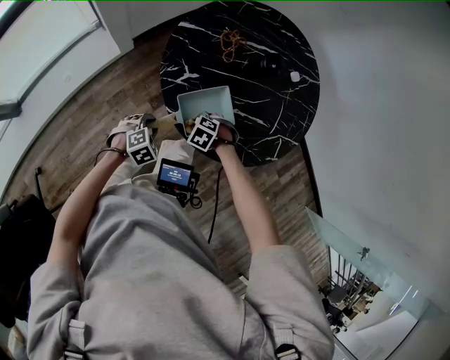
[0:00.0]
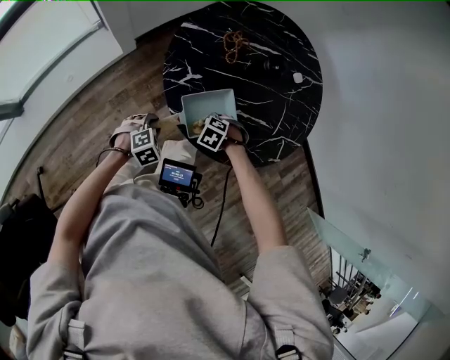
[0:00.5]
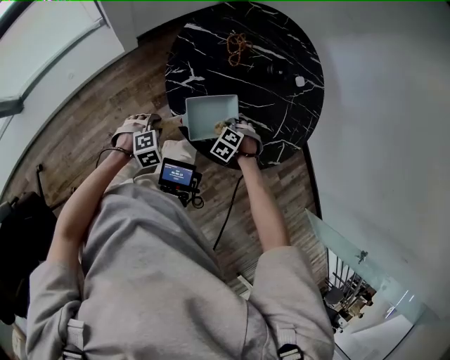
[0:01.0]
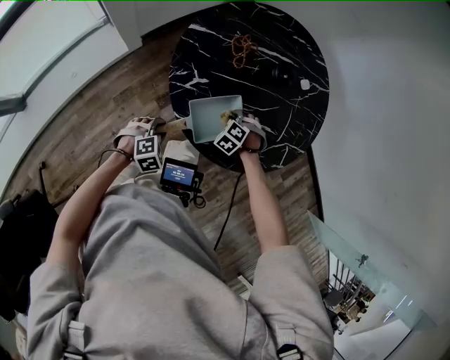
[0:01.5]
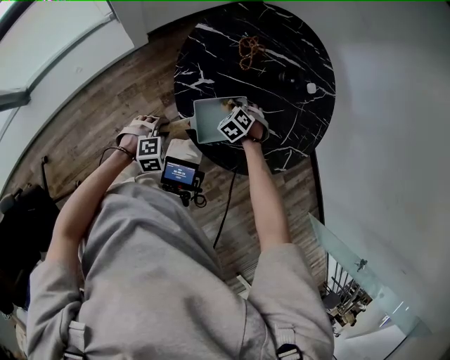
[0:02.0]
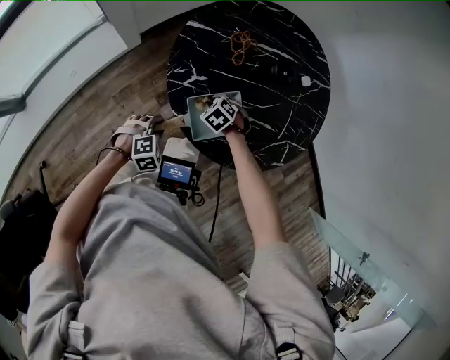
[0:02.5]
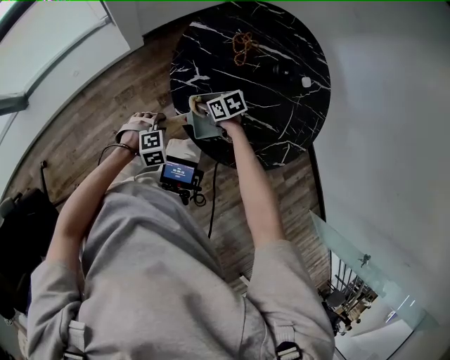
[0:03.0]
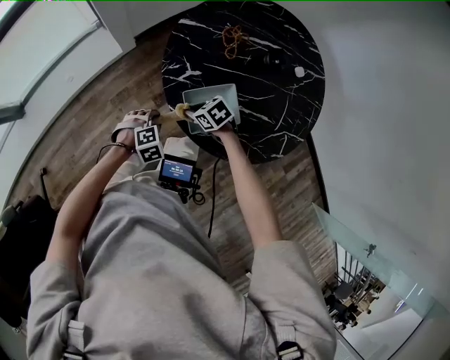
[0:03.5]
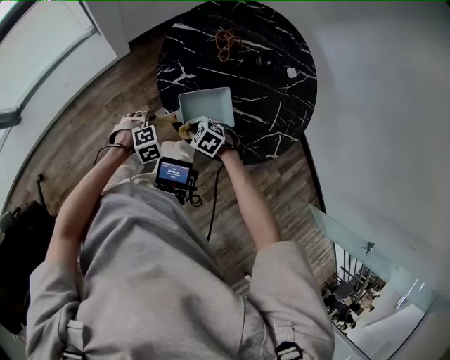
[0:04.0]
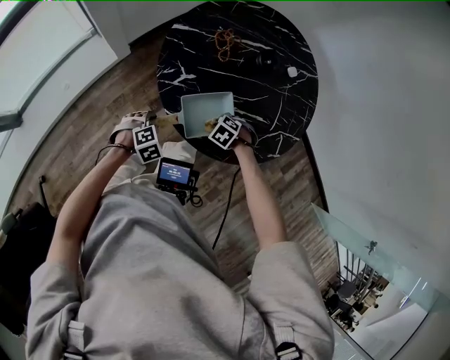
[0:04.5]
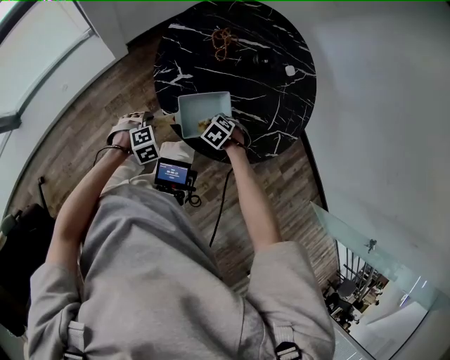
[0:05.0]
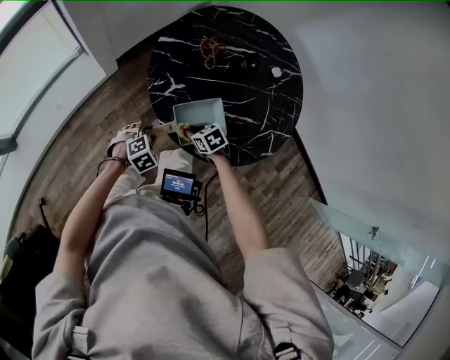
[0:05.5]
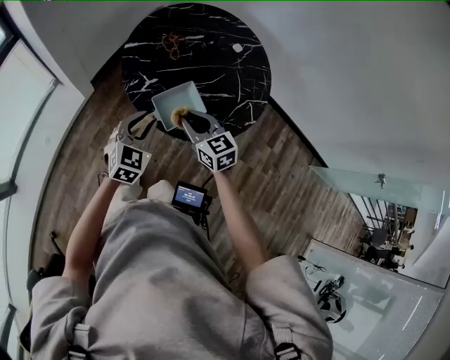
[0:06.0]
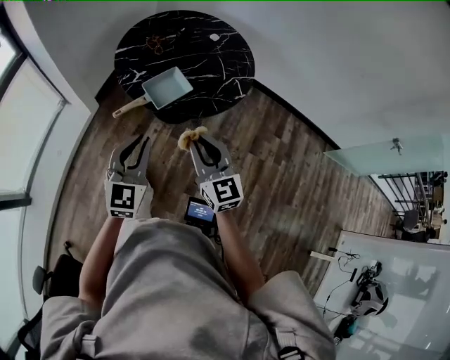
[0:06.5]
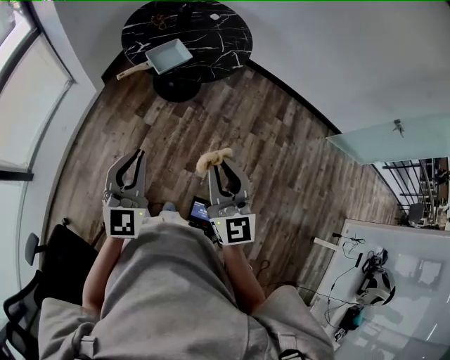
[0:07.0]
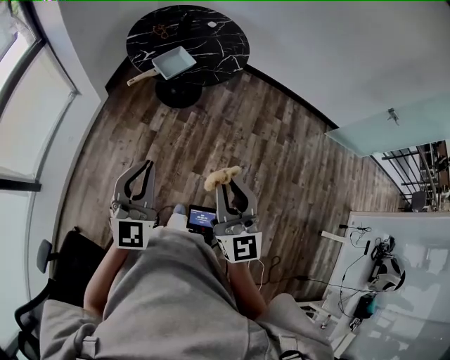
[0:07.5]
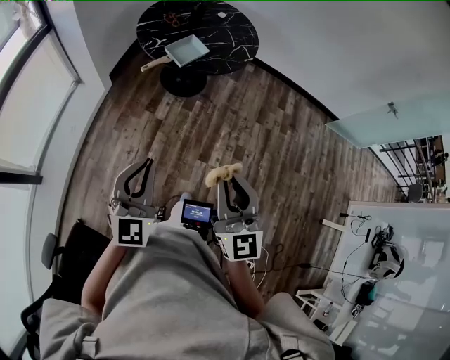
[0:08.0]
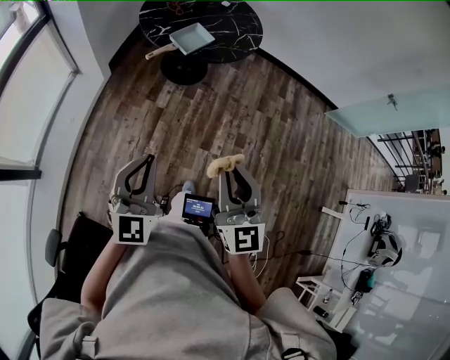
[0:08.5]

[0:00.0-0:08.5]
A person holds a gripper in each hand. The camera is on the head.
0:00.0 to 0:02.0: The right gripper moves about 15 cm, and changes its angle by roughly 20 degrees.
0:02.0 to 0:04.0: The right gripper ends up some 20 cm from where it was, and rotates roughly 30 degrees.
0:04.0 to 0:06.5: Both grippers move upward, about 35 cm. The right gripper points its fingers roughly 60 degrees further upward; the left gripper points its fingers roughly 60 degrees further upward, and closes its fingers.
0:06.5 to 0:08.5: The two grippers go approximately 35 cm backward. The right gripper swivels roughly 20 degrees.

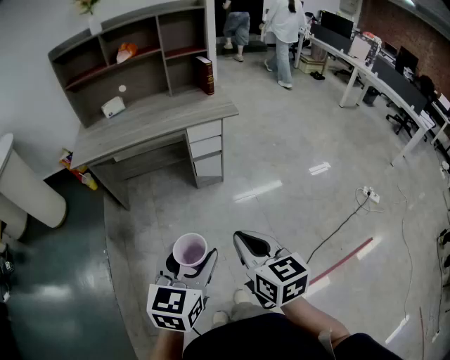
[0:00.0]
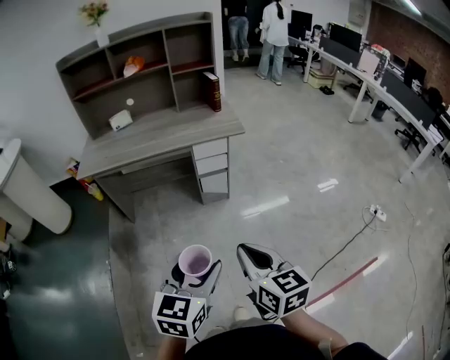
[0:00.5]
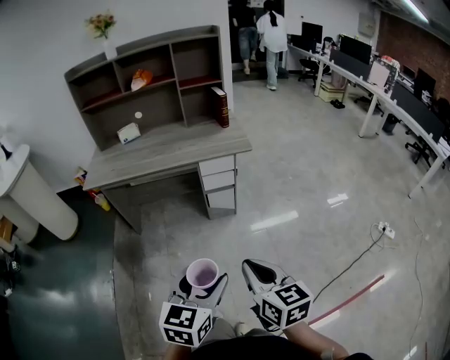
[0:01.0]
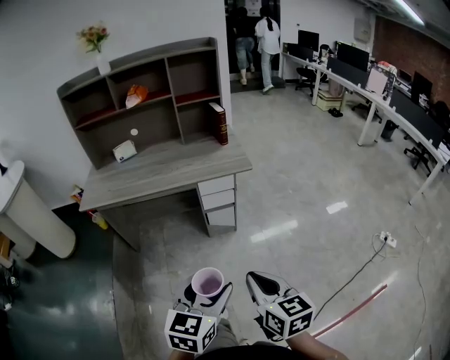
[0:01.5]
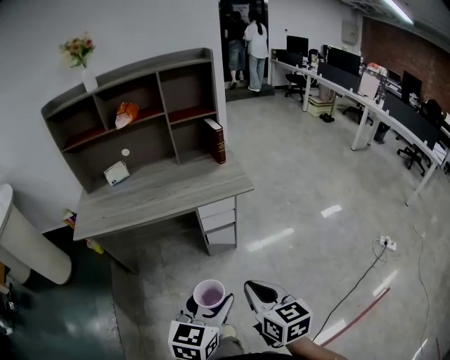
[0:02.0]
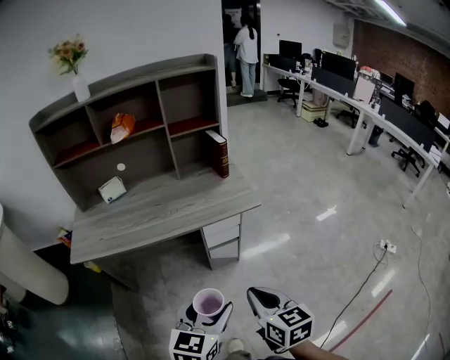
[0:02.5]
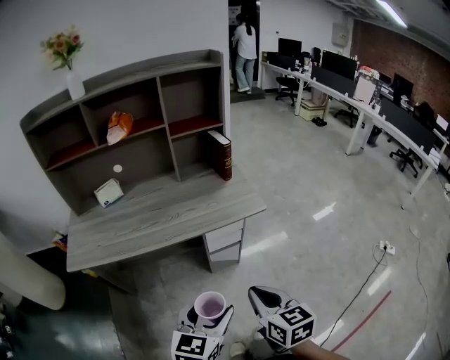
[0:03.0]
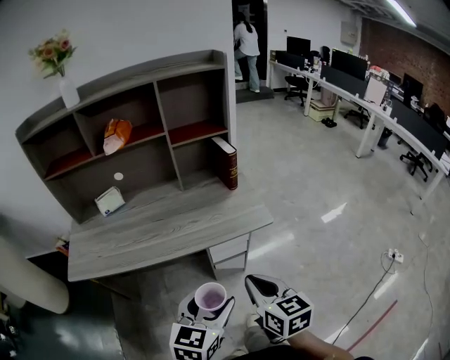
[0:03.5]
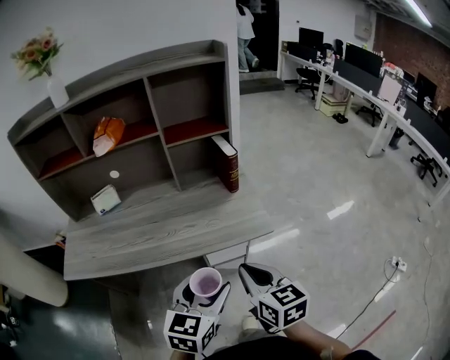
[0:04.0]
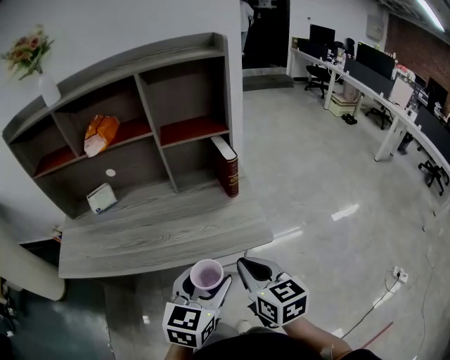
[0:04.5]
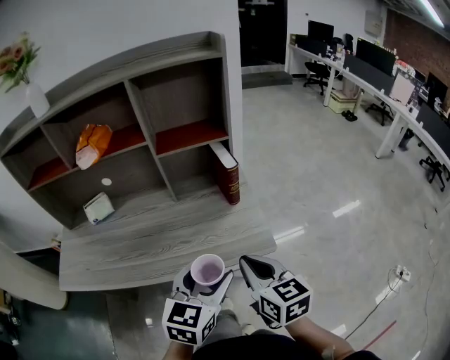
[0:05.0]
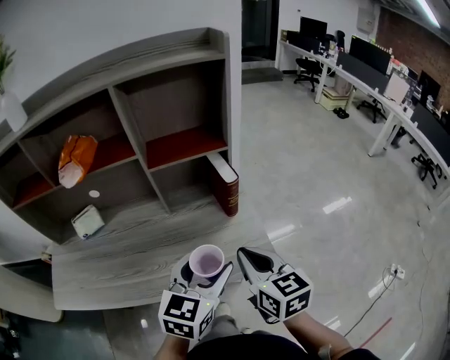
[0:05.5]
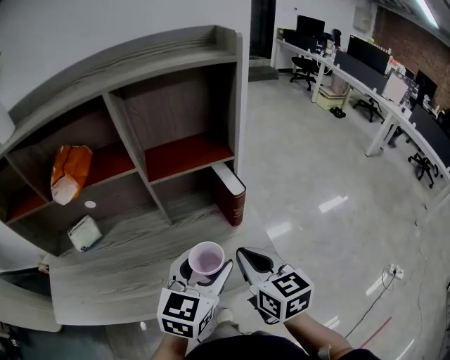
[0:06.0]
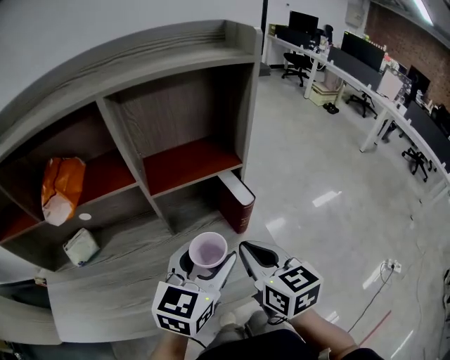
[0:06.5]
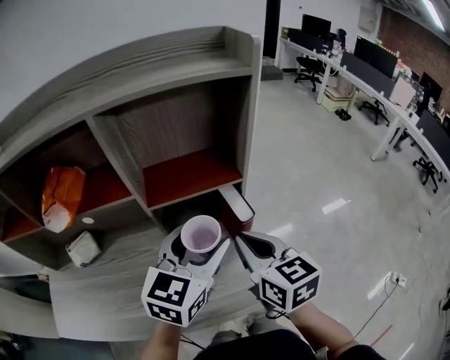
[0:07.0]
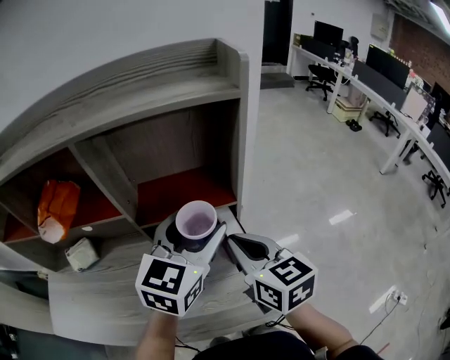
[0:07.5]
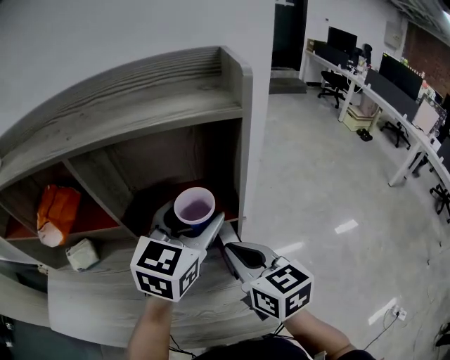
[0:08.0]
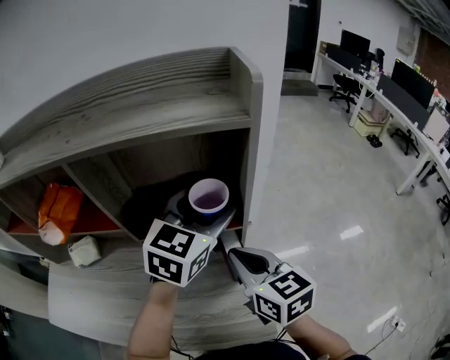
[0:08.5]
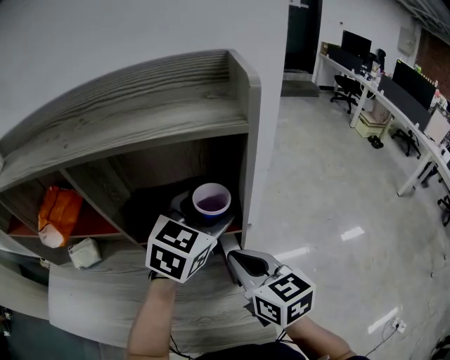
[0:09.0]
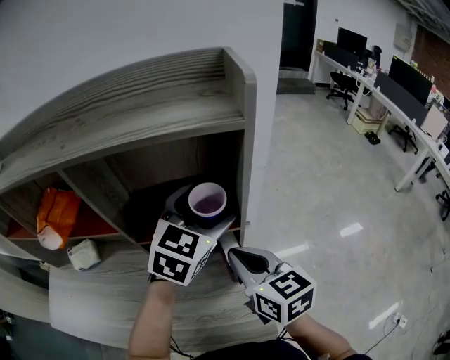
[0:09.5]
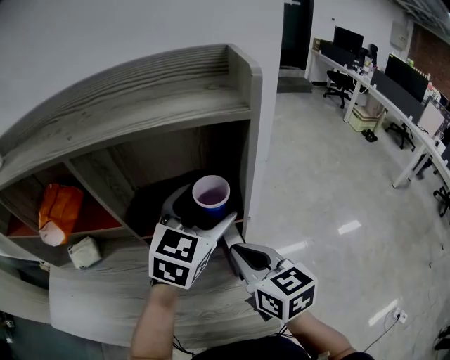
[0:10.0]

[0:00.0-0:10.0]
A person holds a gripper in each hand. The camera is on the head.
0:00.0 to 0:02.0: Both grippers move forward, about 20 cm.
0:02.0 to 0:04.0: The two grippers go some 30 cm forward.
0:04.0 to 0:06.0: Both grippers travel together forward, roughly 25 cm.
0:06.0 to 0:08.0: The left gripper goes some 30 cm forward and upward; the right gripper travels forward by roughly 20 cm.
0:08.0 to 0:10.0: The grippers move only a little.

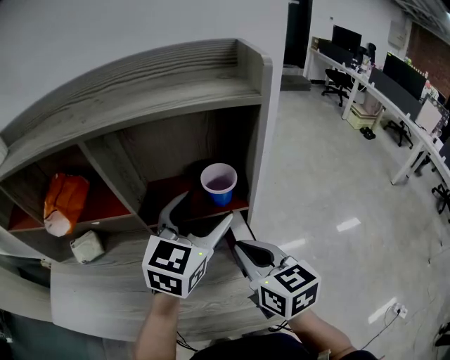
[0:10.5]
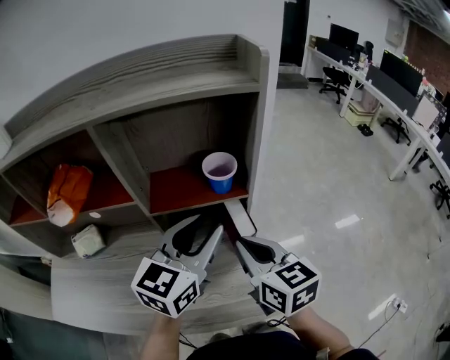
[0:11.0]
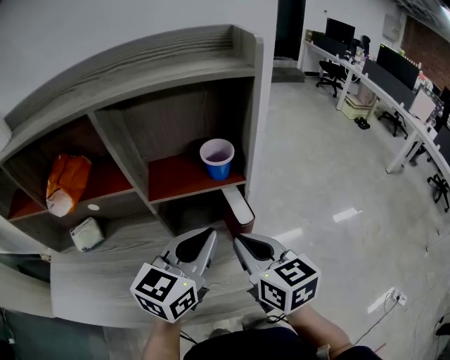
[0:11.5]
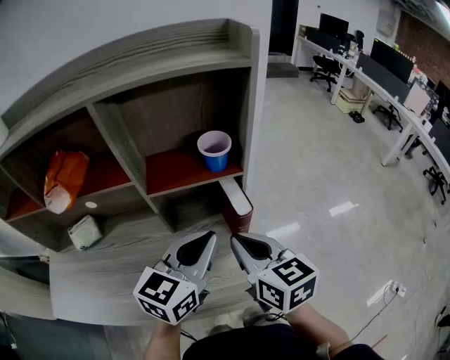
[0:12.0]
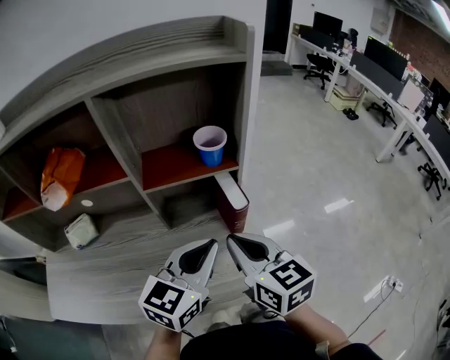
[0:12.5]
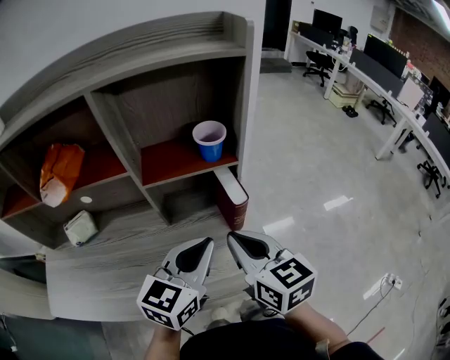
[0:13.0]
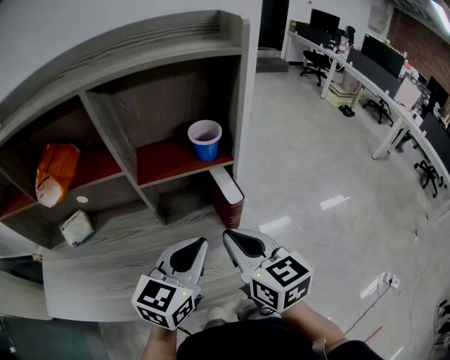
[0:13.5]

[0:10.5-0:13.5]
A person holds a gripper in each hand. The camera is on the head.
0:10.5 to 0:12.0: The right gripper goes some 5 cm backward. The left gripper travels backward and downward by roughly 15 cm, and closes up.
0:12.0 to 0:13.5: There are only small adjustments of the grippers.

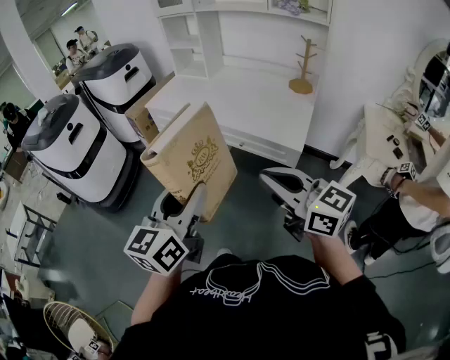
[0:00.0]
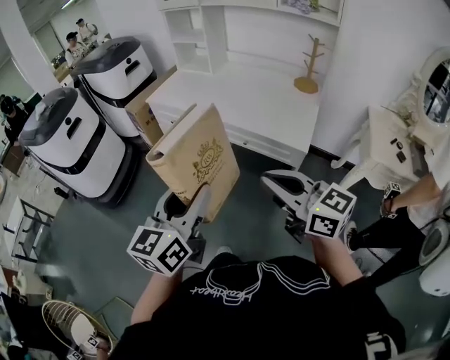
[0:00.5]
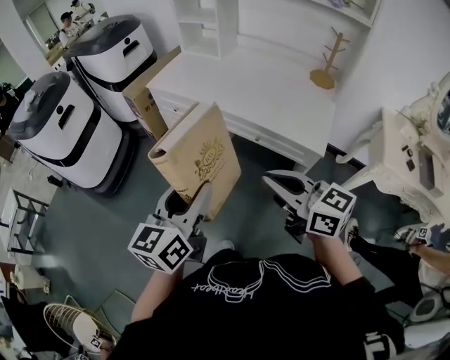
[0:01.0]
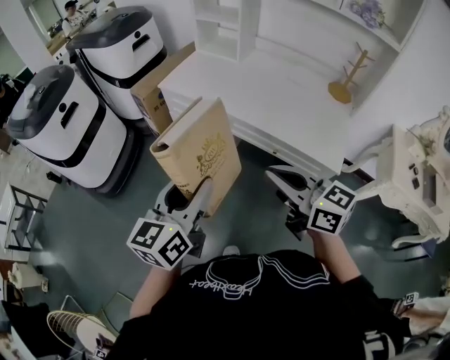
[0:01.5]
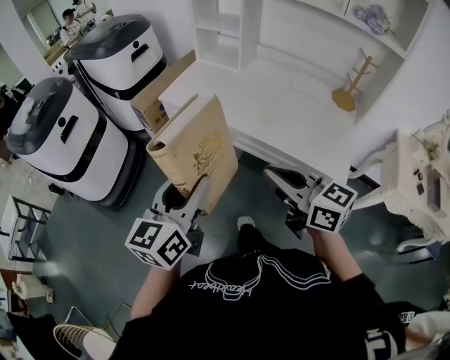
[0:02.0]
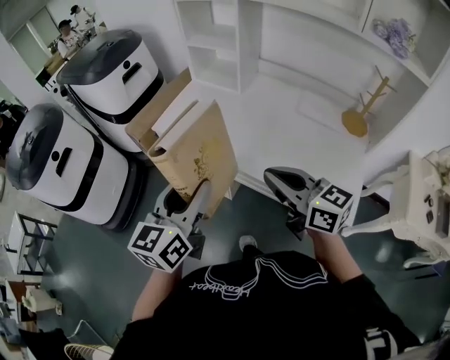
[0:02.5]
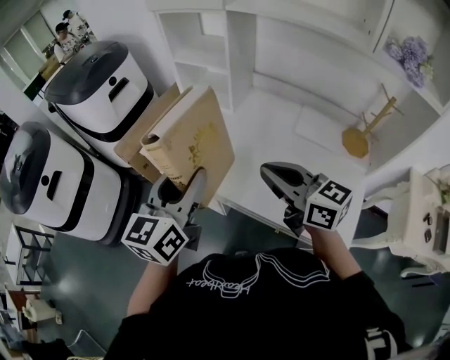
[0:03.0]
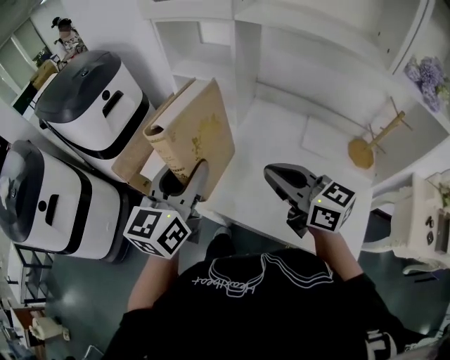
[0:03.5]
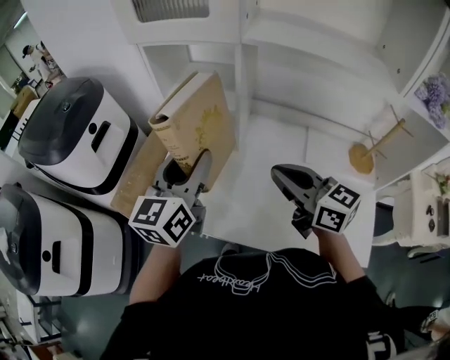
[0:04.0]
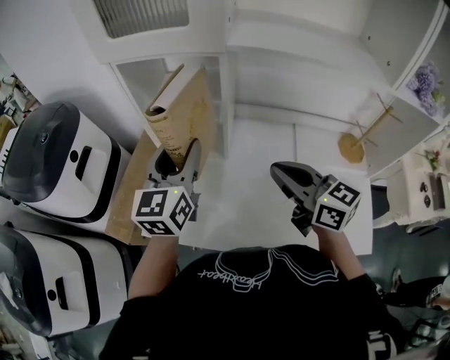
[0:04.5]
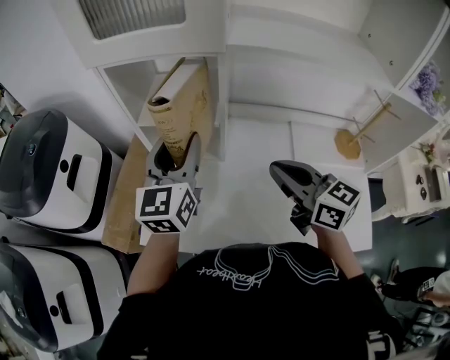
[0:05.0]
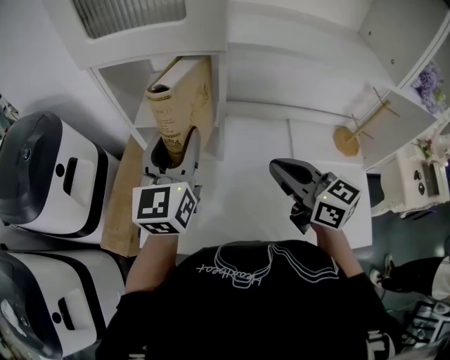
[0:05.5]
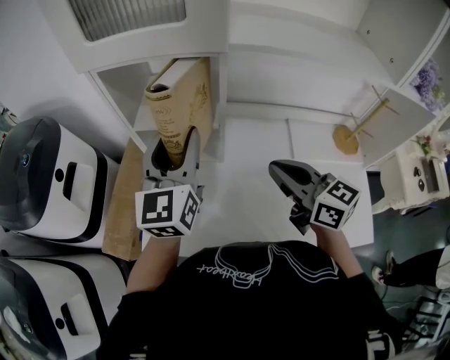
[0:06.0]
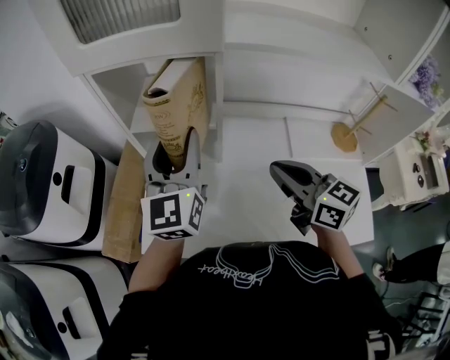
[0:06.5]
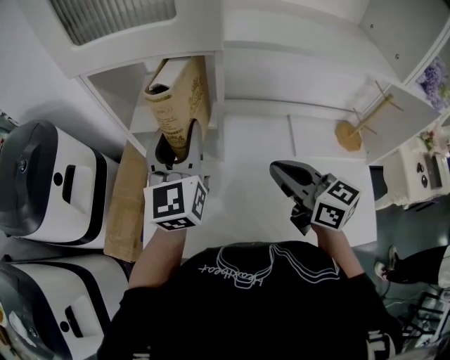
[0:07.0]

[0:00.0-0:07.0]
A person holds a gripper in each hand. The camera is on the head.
0:00.0 to 0:02.0: The left gripper is displaced forward and to the left by approximately 30 cm, while the right gripper shifts some 25 cm forward.
0:02.0 to 0:03.5: The two grippers go some 35 cm forward.
0:03.5 to 0:05.0: The left gripper heads forward, covering approximately 25 cm. Meanwhile the right gripper shifts approximately 15 cm forward, and rotates approximately 20 degrees.
0:05.0 to 0:07.0: The grippers move only a little.
